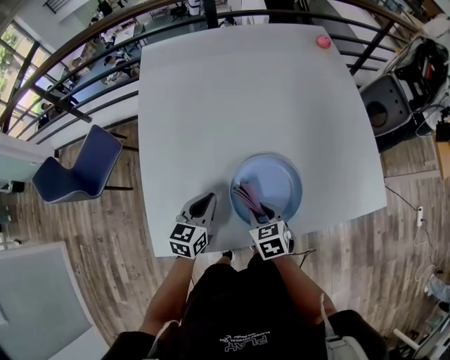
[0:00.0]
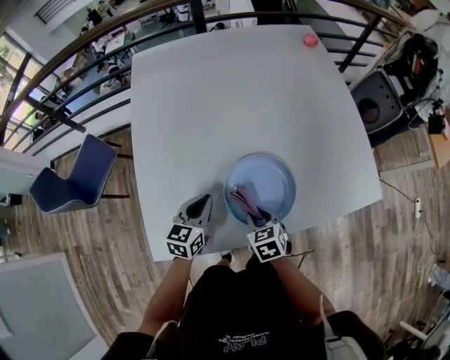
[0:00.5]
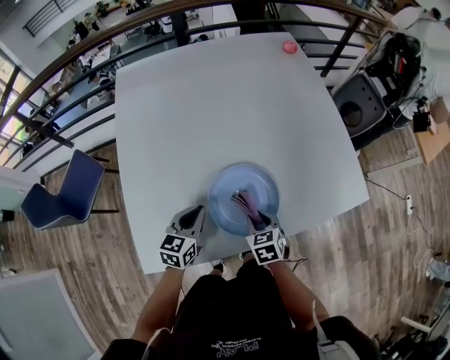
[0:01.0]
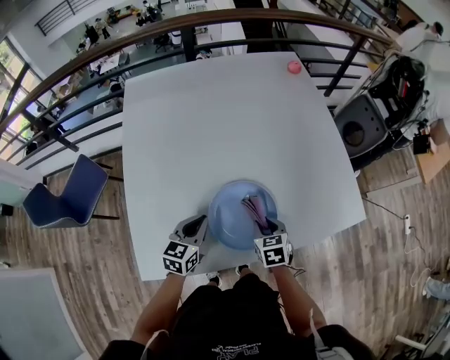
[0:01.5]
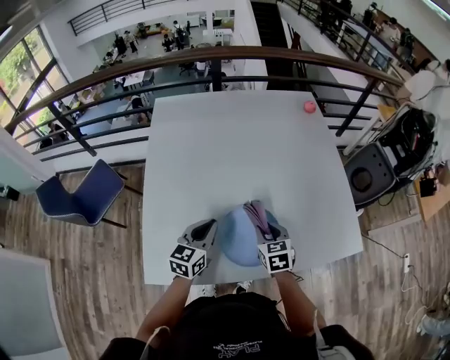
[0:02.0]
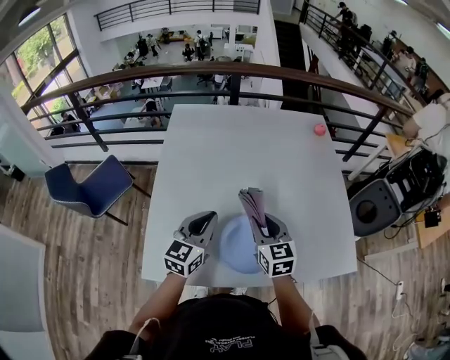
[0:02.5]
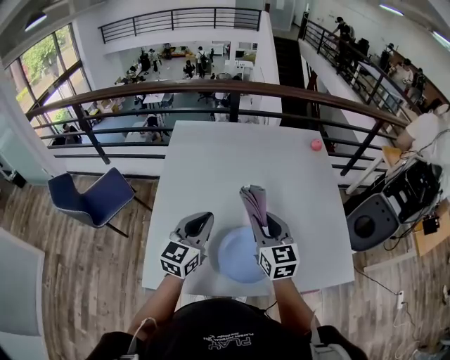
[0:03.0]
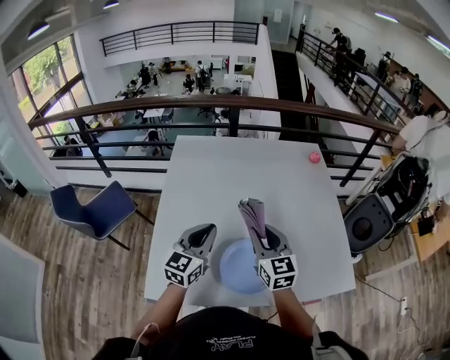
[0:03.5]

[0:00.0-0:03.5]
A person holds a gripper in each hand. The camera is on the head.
0:00.0 to 0:02.0: The right gripper heads upward, forward and to the right, covering approximately 15 cm, while the left gripper shifts some 10 cm upward.
0:02.0 to 0:03.5: Both grippers travel together upward, roughly 20 cm. The right gripper tips its fingers upward by approximately 30 degrees.

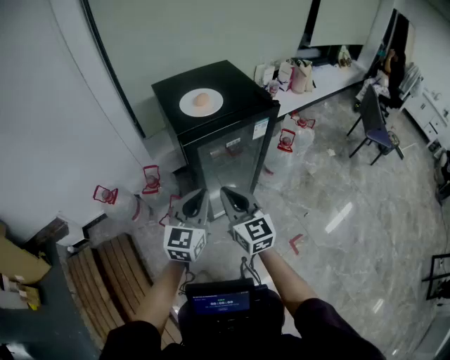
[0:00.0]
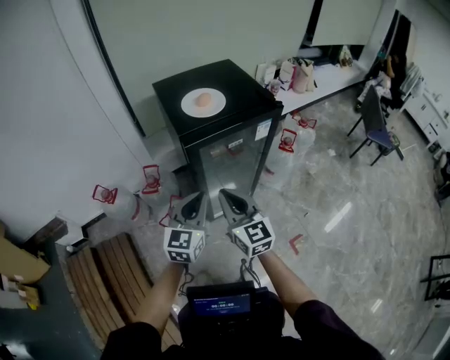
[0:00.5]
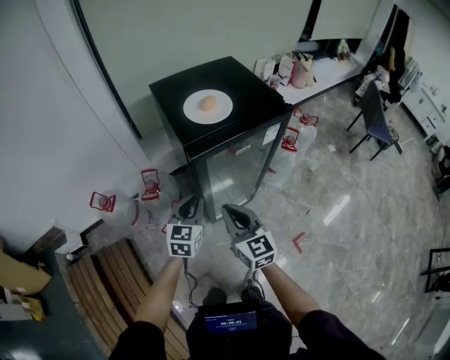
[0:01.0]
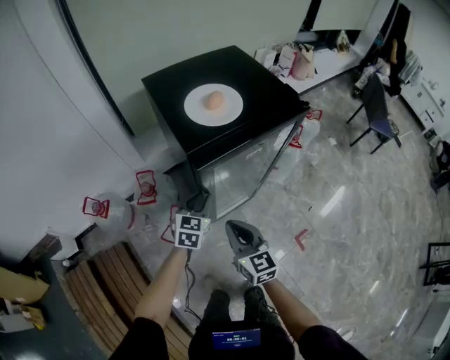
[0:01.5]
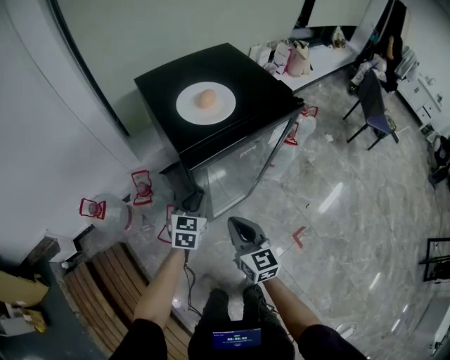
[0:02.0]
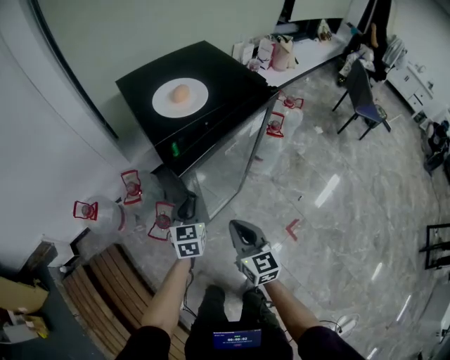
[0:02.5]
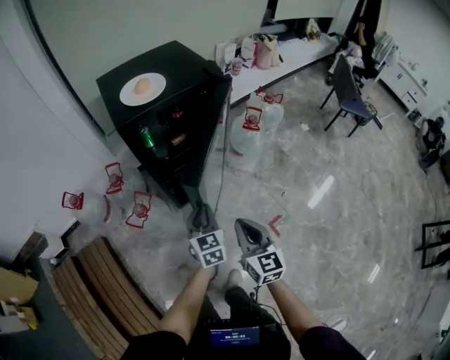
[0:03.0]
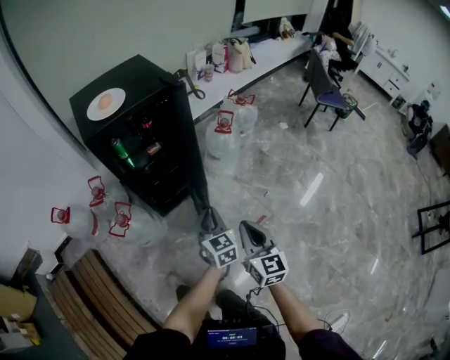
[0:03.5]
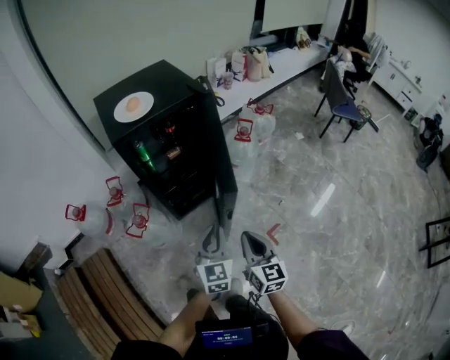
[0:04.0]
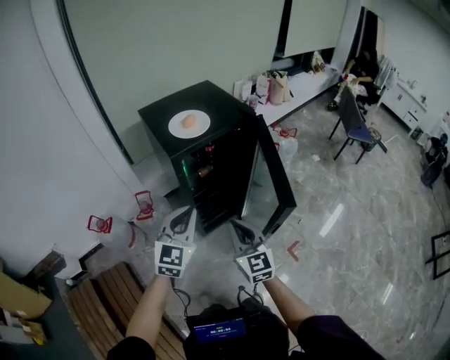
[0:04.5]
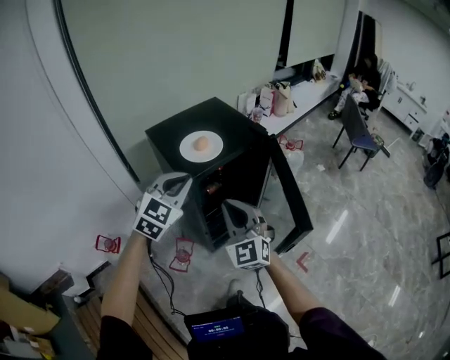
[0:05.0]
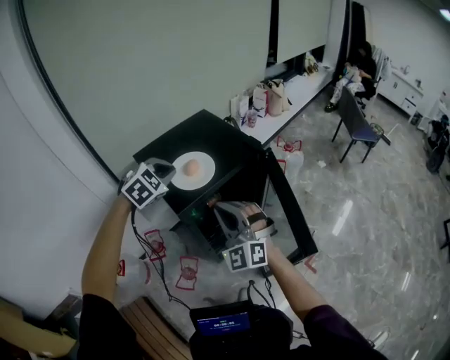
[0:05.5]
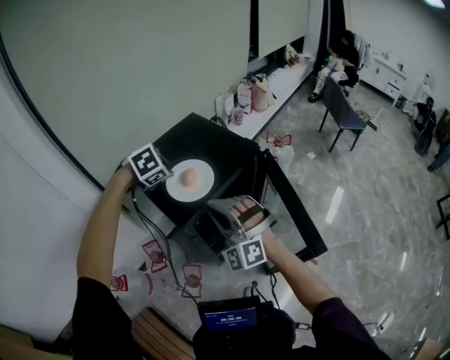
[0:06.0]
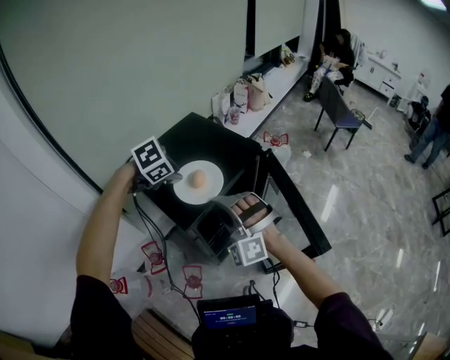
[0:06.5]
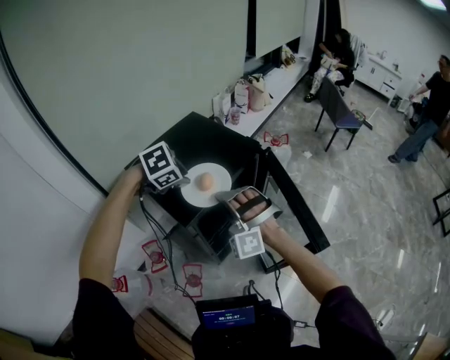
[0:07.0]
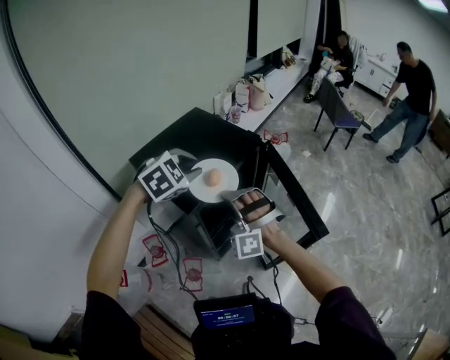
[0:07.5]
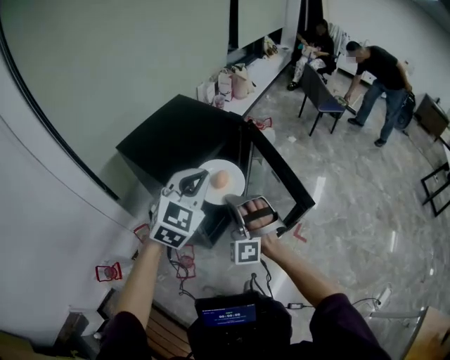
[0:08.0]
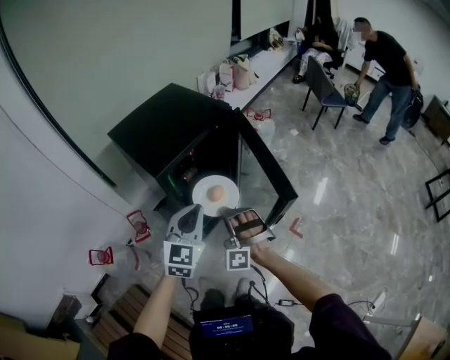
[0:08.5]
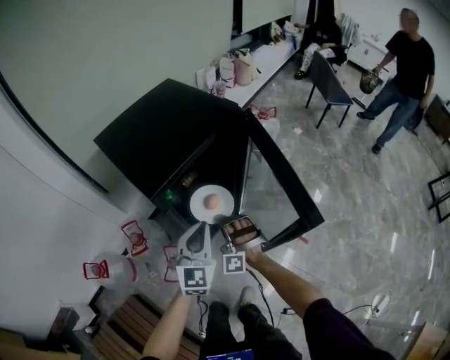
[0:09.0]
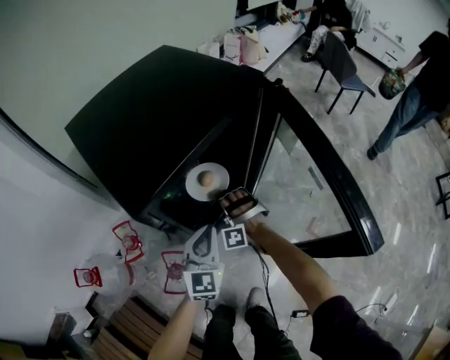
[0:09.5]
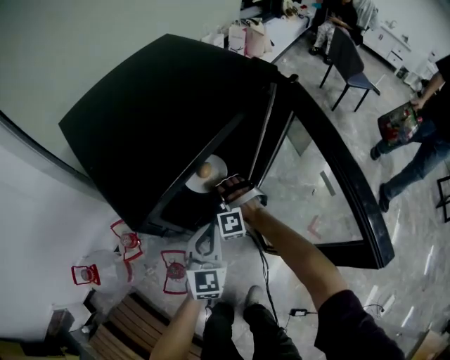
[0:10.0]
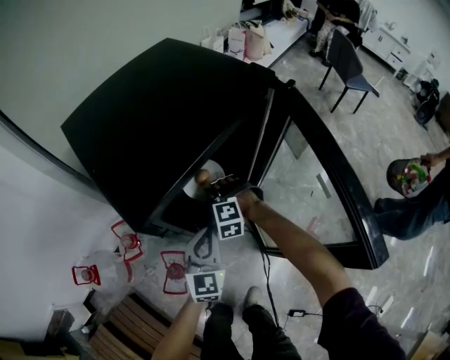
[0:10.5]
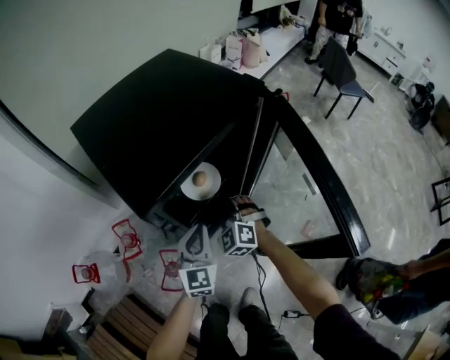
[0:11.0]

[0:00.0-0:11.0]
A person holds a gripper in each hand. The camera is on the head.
0:00.0 to 0:02.0: The right gripper travels downward by some 15 cm; the left gripper heads downward and forward, covering about 25 cm, and turns by about 20 degrees.
0:02.0 to 0:03.5: The two grippers go approximately 40 cm to the right and backward. The left gripper swivels roughly 20 degrees.
0:03.5 to 0:05.5: The pair of grippers is taken to the left and forward, about 50 cm. The grippers both shift upward by some 20 cm. The right gripper rotates around the line of its fingers by roughly 60 degrees, counterclockwise from behind. The left gripper twists about 60 degrees clockwise, seen from behind.
0:05.5 to 0:07.5: The left gripper shifts by roughly 5 cm. Meanwhile the right gripper swivels some 40 degrees, and opens, then closes once more.
0:07.5 to 0:09.0: The right gripper shifts about 25 cm downward. Meanwhile the left gripper heads downward, backward and to the right, covering approximately 25 cm, and points its fingers about 40 degrees further upward.
0:09.0 to 0:11.0: The left gripper moves downward and forward, approximately 15 cm. Meanwhile the right gripper moves forward and downward, about 15 cm, changes its angle by approximately 40 degrees, and opens, then closes once more.

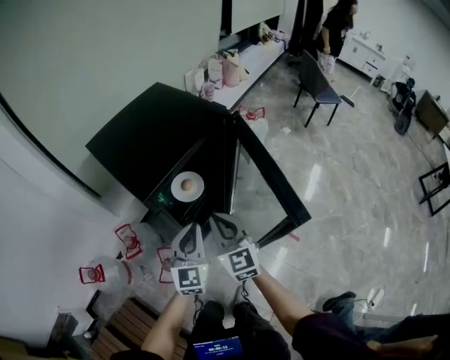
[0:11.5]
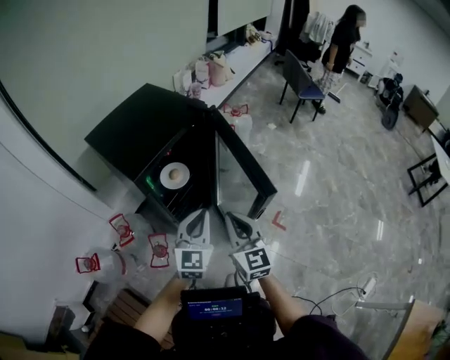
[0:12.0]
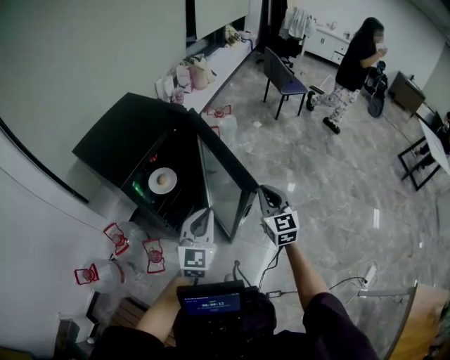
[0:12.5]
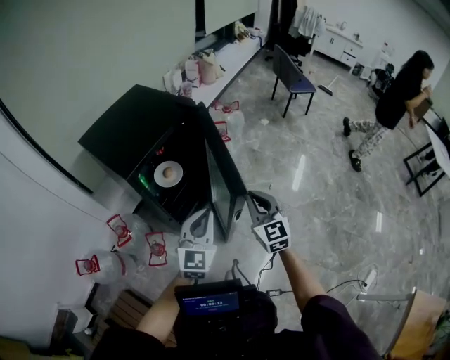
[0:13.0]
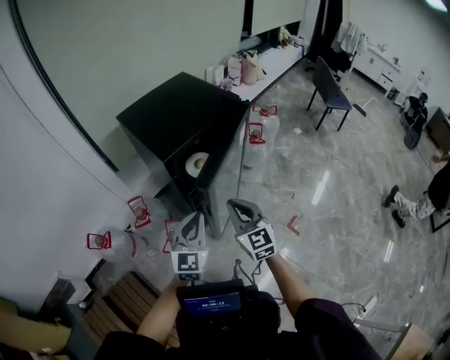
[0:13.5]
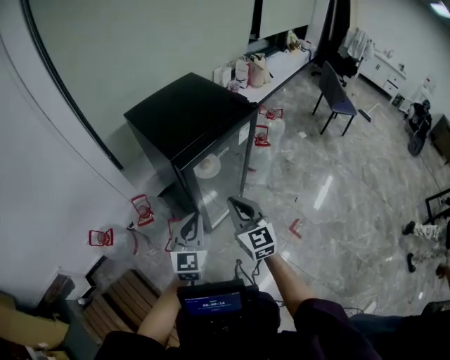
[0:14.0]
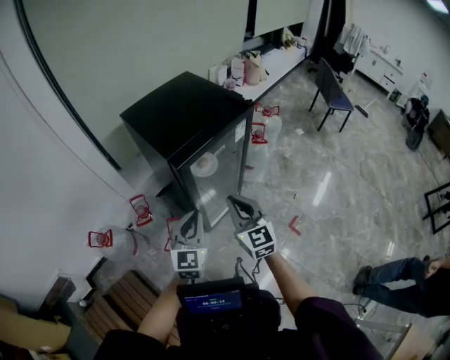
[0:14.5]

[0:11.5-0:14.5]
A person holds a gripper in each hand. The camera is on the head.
0:11.5 to 0:13.0: The right gripper shifts approximately 20 cm to the right, while the left gripper moves to the right, backward and upward, roughly 15 cm.
0:13.0 to 0:14.5: The two grippers go approximately 15 cm to the left.

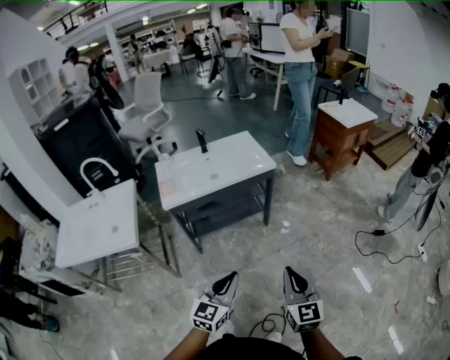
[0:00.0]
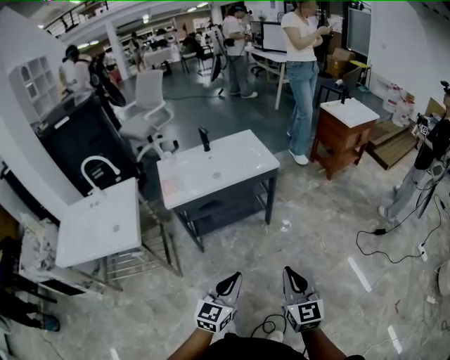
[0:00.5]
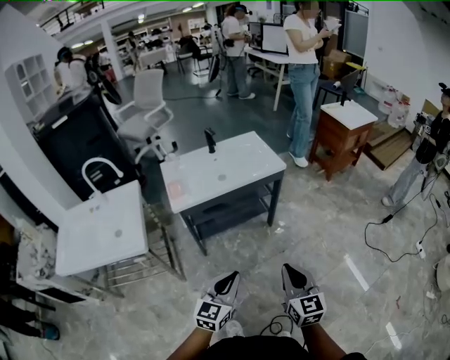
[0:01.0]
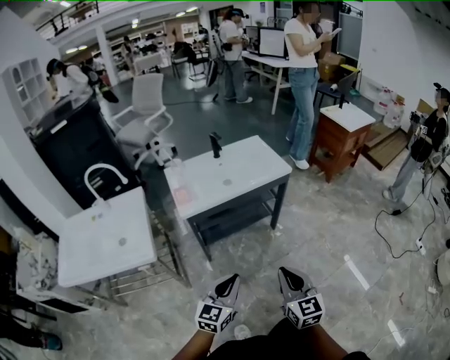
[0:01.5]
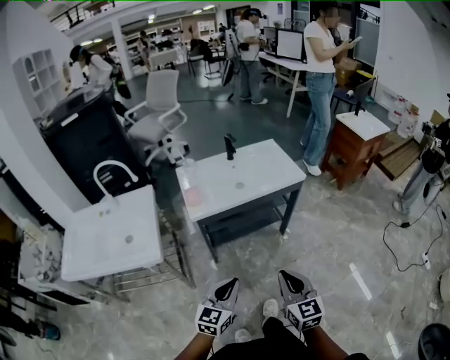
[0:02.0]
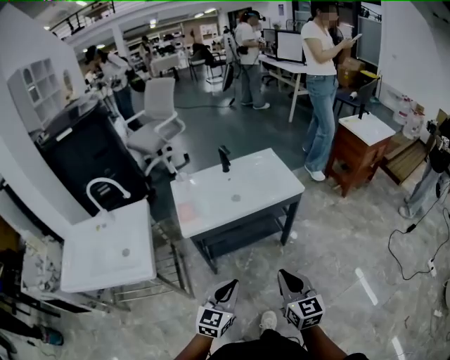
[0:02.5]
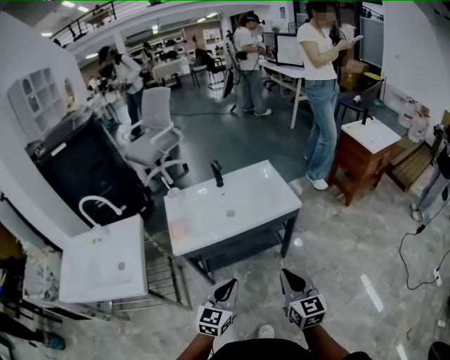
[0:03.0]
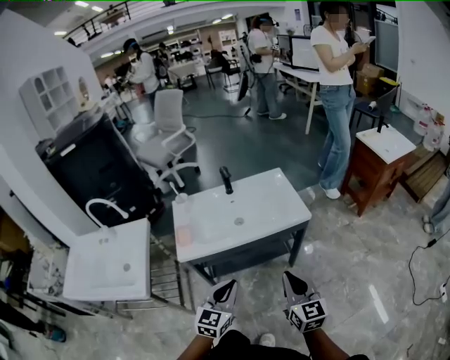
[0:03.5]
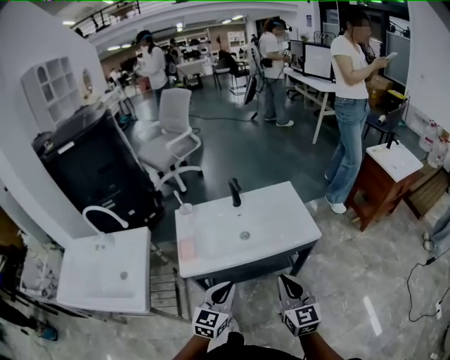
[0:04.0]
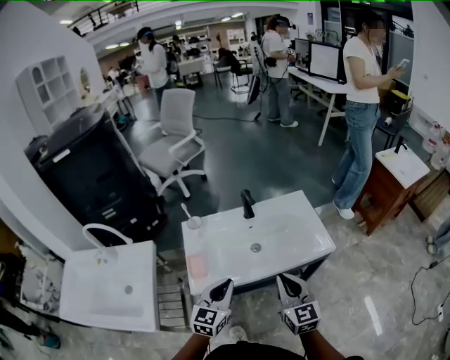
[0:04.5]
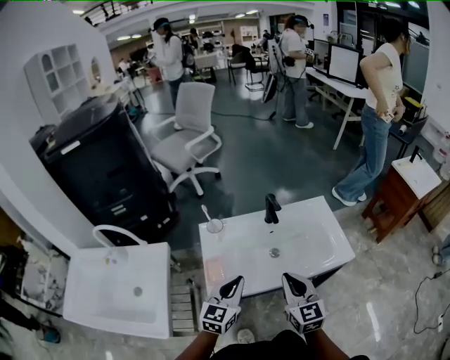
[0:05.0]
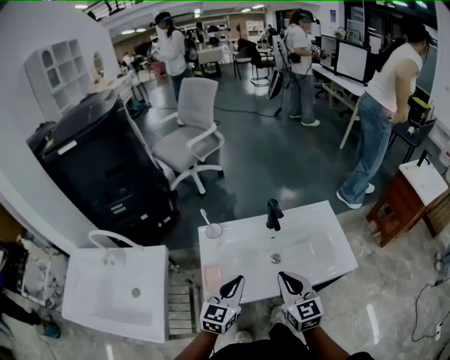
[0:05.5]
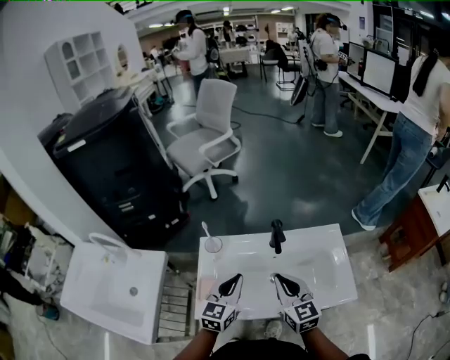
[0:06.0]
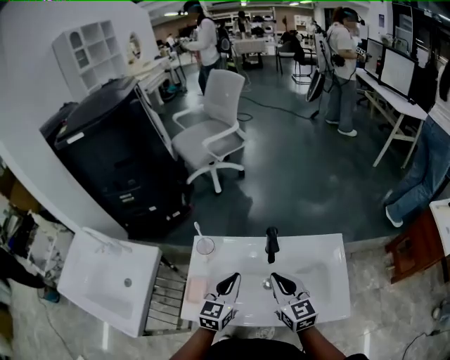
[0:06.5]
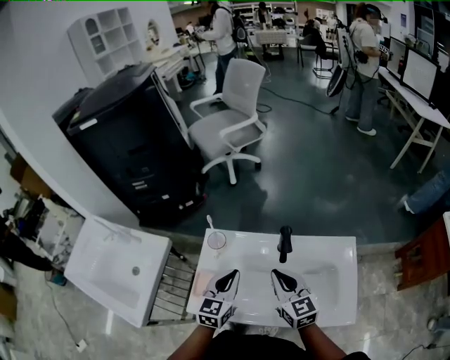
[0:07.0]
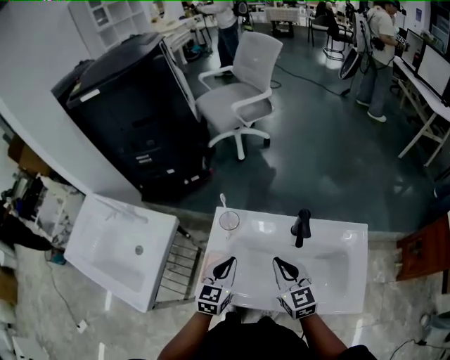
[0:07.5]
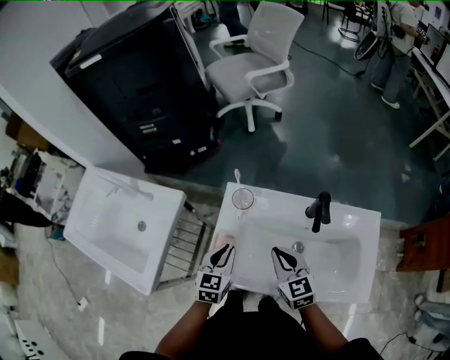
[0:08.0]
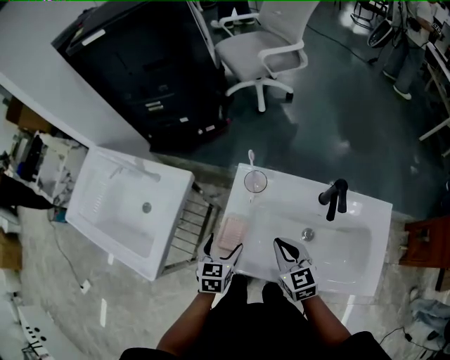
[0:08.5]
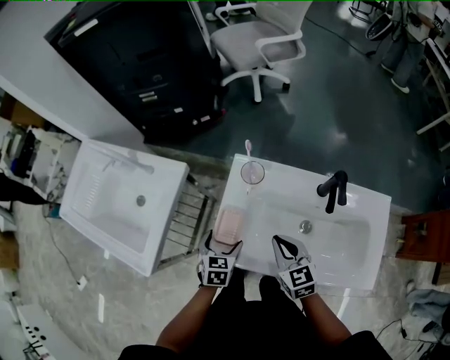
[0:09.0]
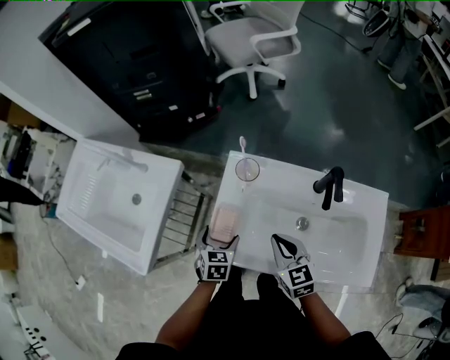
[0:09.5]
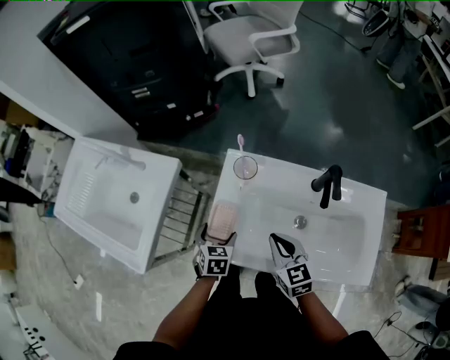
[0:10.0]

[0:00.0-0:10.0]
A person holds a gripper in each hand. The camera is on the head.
0:00.0 to 0:02.0: The two grippers go approximately 20 cm to the left.
0:02.0 to 0:04.0: Both grippers travel together forward, about 30 cm.
0:04.0 to 0:06.0: The left gripper moves forward, roughly 25 cm. Meanwhile the right gripper goes about 30 cm forward and to the left.
0:06.0 to 0:08.0: The grippers both shift to the left and downward by about 15 cm. The right gripper turns by some 20 degrees. The left gripper turns by approximately 30 degrees.
0:08.0 to 0:10.0: The right gripper shifts by approximately 5 cm. The left gripper moves downward, some 10 cm, rotates roughly 20 degrees, and opens.
